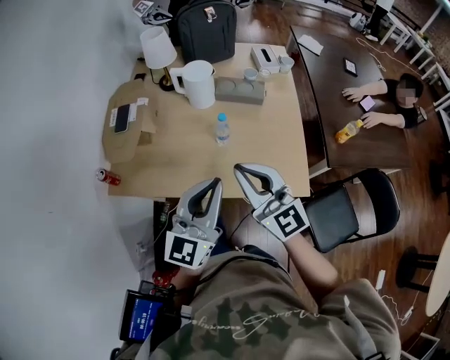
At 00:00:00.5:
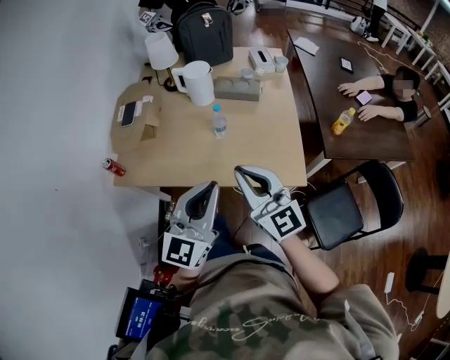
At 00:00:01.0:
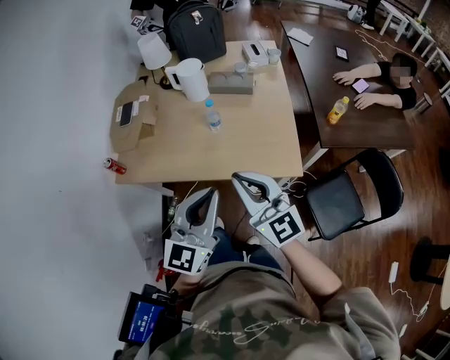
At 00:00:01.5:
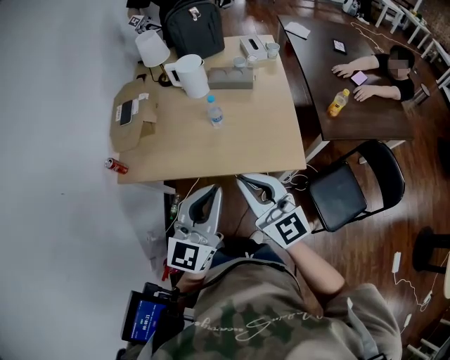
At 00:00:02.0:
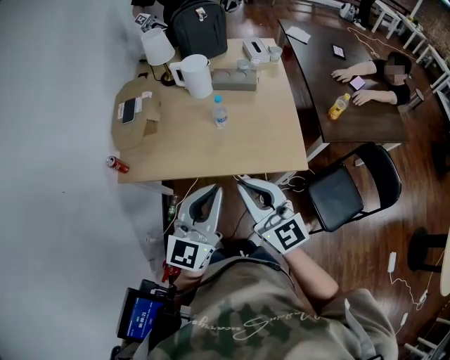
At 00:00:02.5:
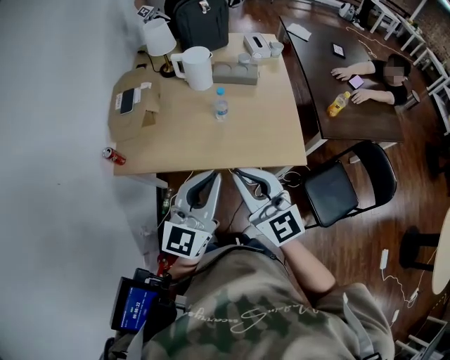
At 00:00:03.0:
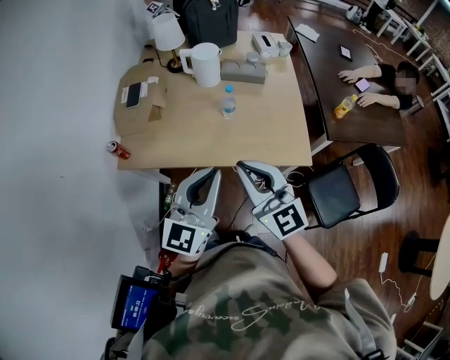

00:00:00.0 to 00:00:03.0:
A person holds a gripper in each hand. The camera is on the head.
00:00:00.0 to 00:00:01.5: The grippers both shift backward by roughly 15 cm.
00:00:01.5 to 00:00:03.0: Both grippers travel together to the left, some 10 cm.

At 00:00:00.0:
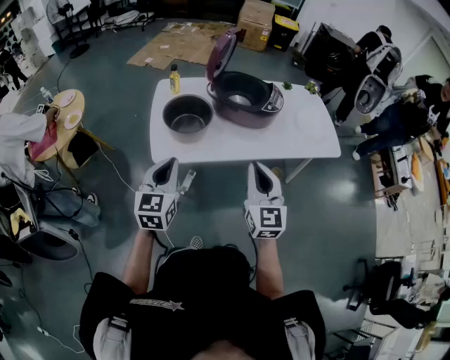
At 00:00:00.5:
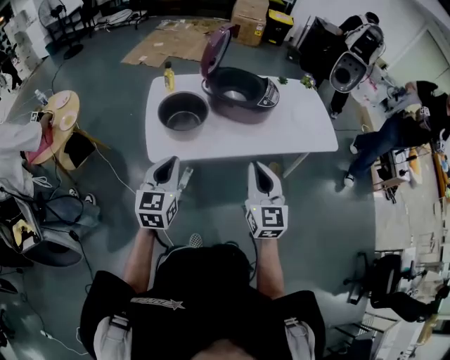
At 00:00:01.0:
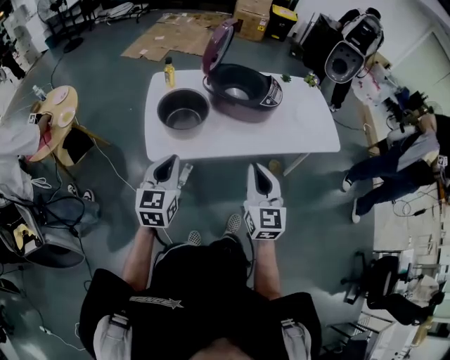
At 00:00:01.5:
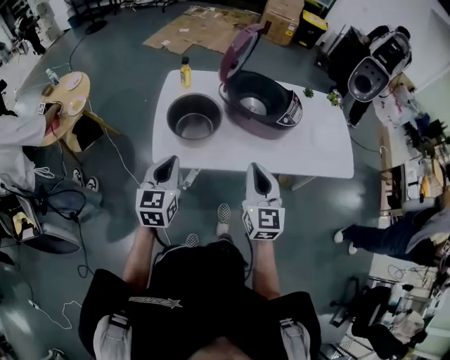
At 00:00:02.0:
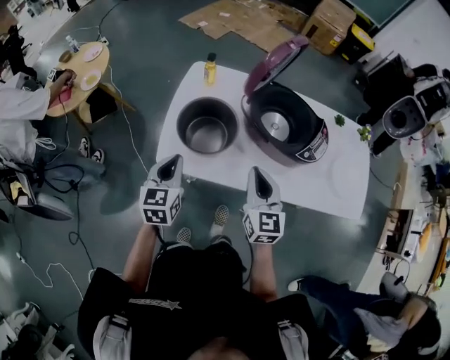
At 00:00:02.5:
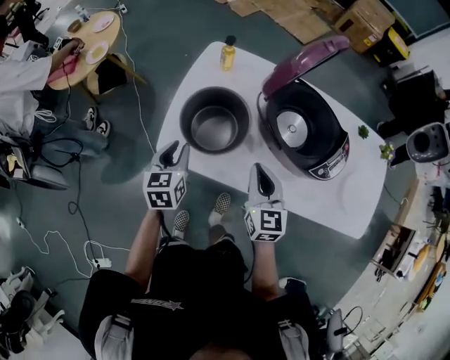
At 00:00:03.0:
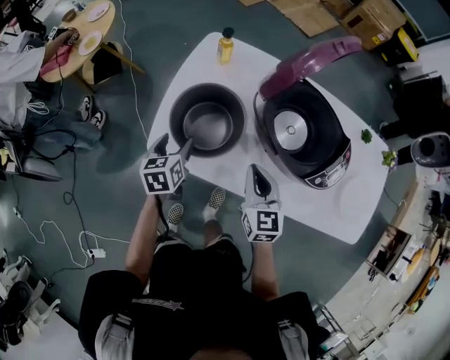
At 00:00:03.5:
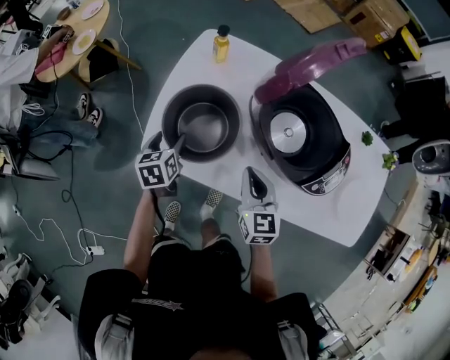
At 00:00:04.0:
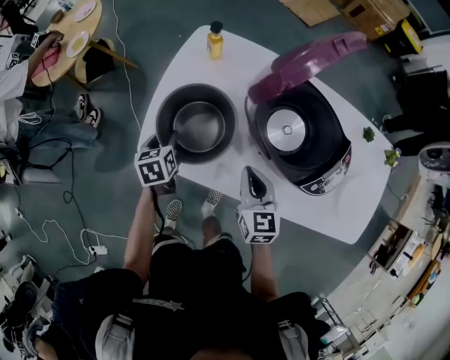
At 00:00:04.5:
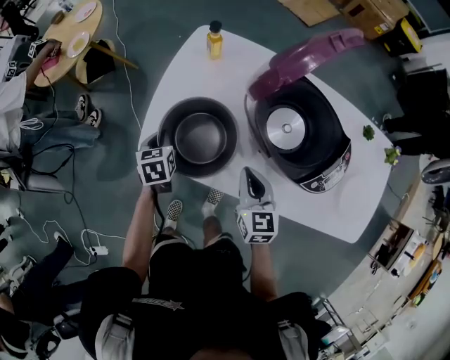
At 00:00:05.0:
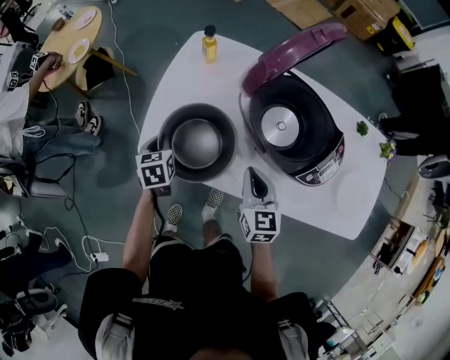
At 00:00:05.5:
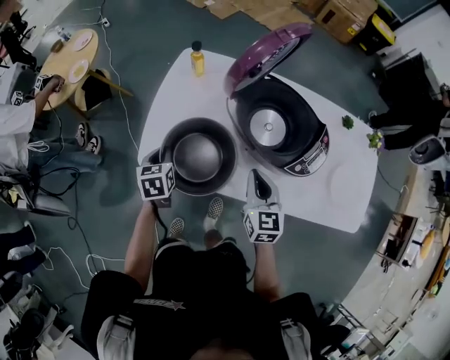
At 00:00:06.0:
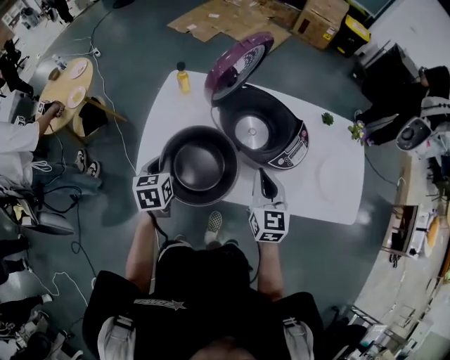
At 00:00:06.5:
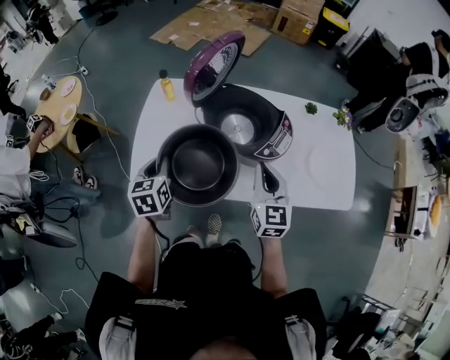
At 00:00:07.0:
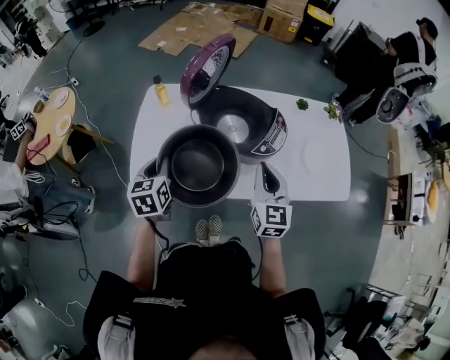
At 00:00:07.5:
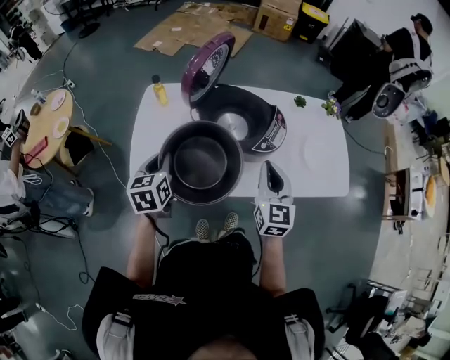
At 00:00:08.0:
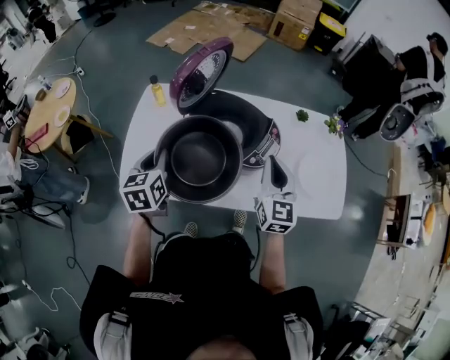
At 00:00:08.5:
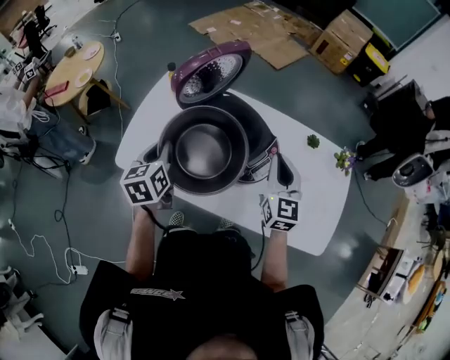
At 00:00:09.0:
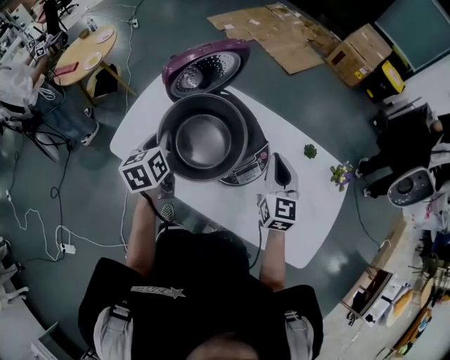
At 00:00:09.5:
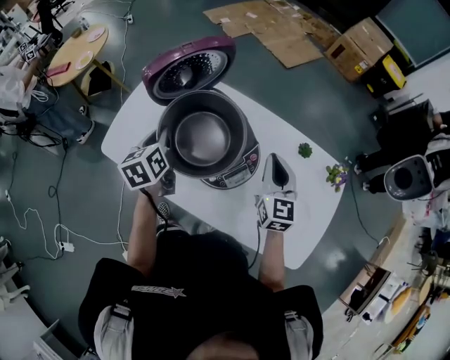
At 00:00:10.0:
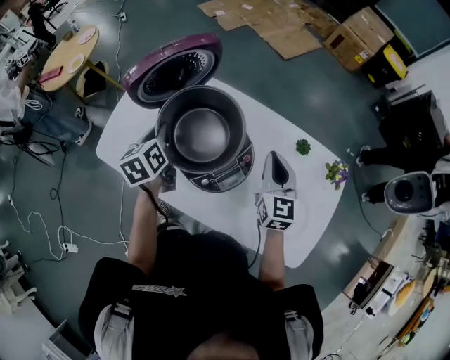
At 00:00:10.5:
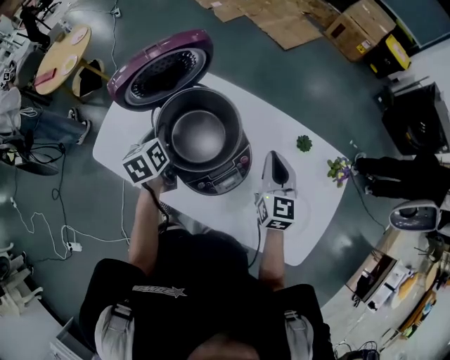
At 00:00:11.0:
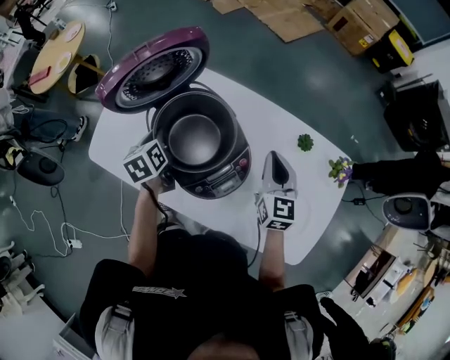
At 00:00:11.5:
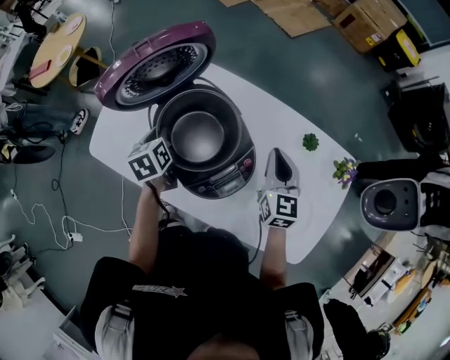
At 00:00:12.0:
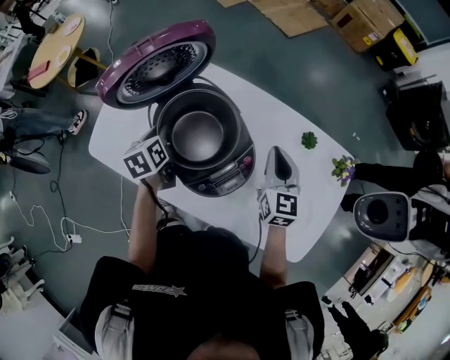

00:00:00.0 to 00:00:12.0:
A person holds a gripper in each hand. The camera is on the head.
00:00:00.0 to 00:00:02.0: Both grippers travel together forward and downward, about 20 cm. The right gripper swivels some 20 degrees. The left gripper changes its angle by approximately 20 degrees.
00:00:02.0 to 00:00:04.0: Both grippers move downward and forward, some 20 cm. The left gripper turns by some 30 degrees, and opens. The right gripper changes its angle by about 20 degrees.
00:00:04.0 to 00:00:06.0: The right gripper travels upward, to the right and backward by some 15 cm; the left gripper travels upward, backward and to the right by roughly 15 cm, and closes up.
00:00:06.0 to 00:00:08.0: The two grippers go approximately 15 cm to the right and upward.
00:00:08.0 to 00:00:10.0: Both grippers travel together to the right and forward, roughly 15 cm. The right gripper changes its angle by some 20 degrees; the left gripper turns by some 30 degrees.
00:00:10.0 to 00:00:12.0: The left gripper is displaced downward by some 10 cm. The right gripper shifts approximately 5 cm downward.

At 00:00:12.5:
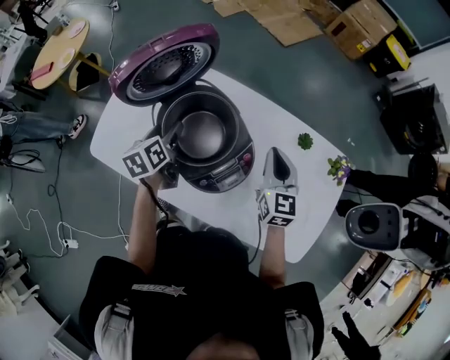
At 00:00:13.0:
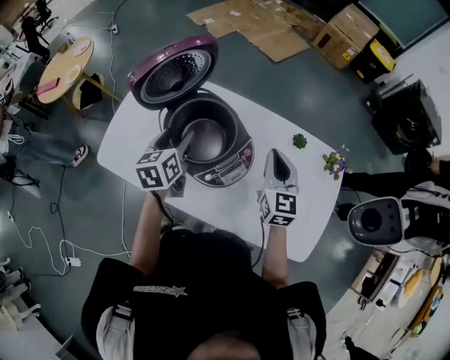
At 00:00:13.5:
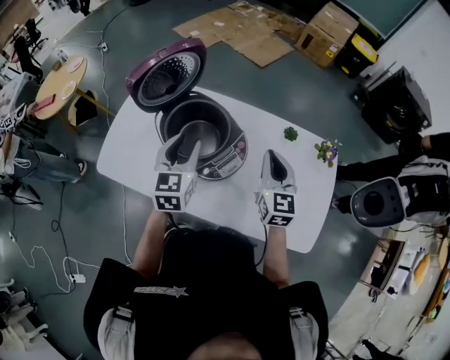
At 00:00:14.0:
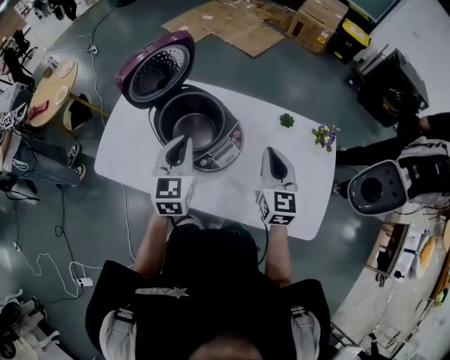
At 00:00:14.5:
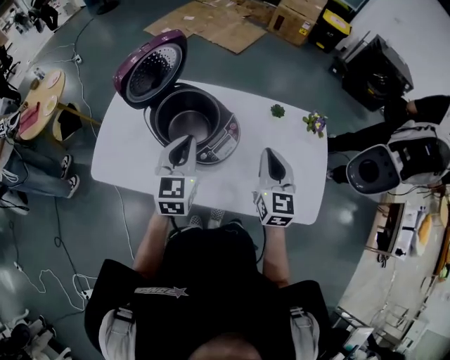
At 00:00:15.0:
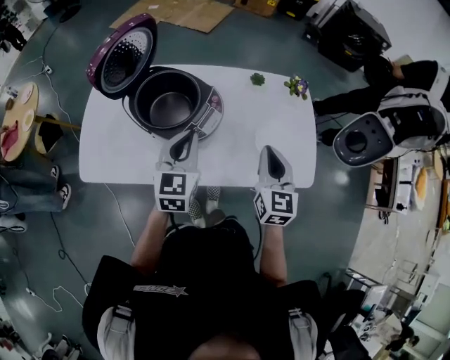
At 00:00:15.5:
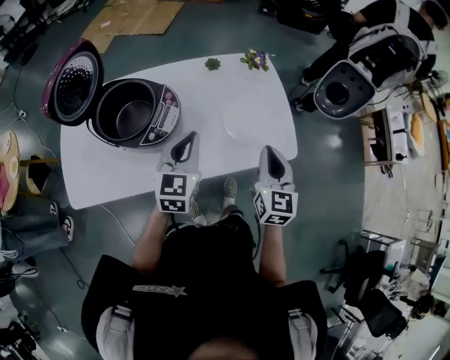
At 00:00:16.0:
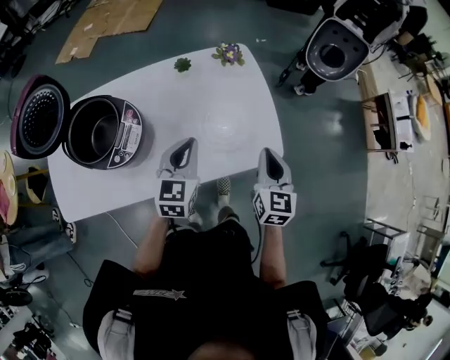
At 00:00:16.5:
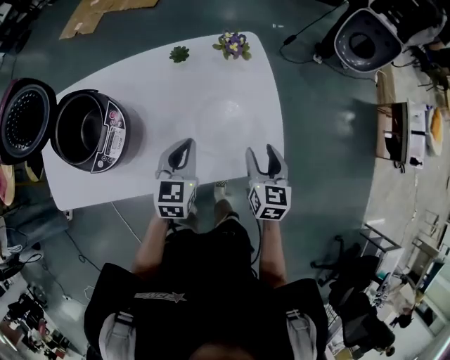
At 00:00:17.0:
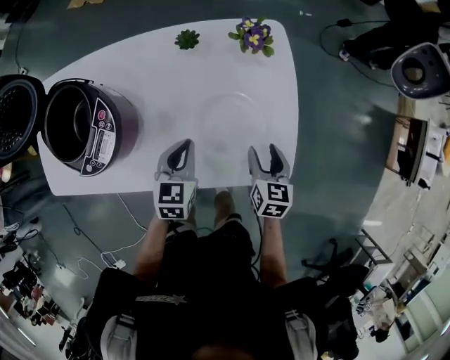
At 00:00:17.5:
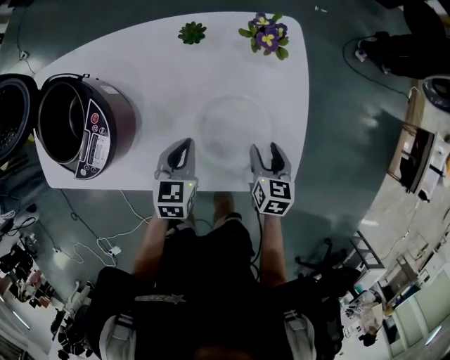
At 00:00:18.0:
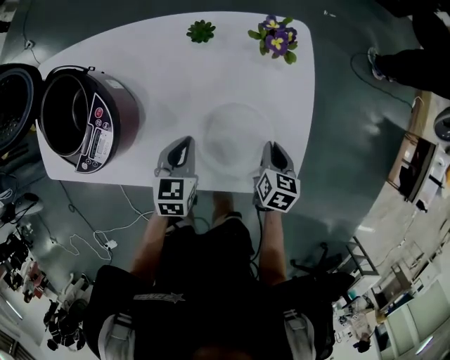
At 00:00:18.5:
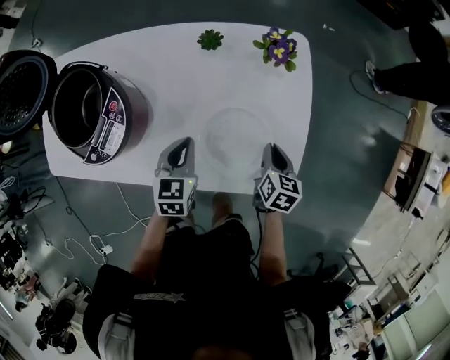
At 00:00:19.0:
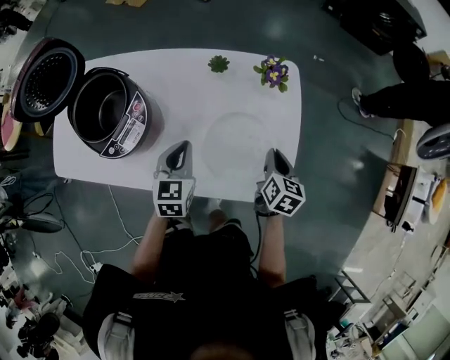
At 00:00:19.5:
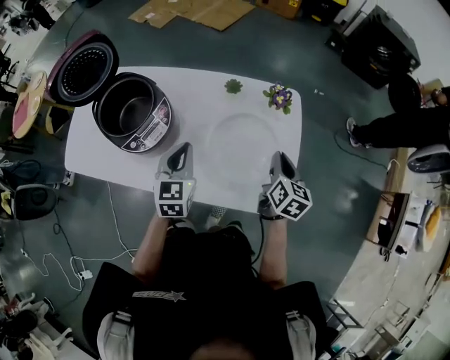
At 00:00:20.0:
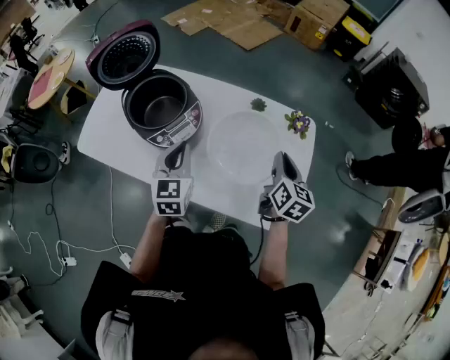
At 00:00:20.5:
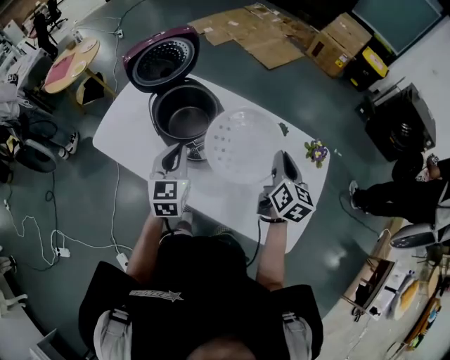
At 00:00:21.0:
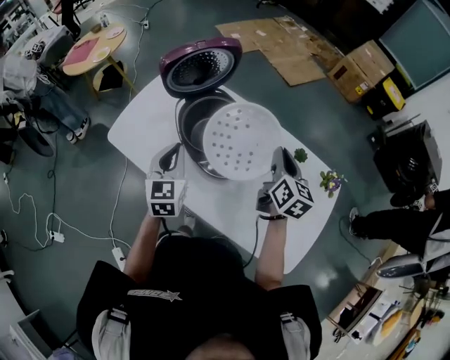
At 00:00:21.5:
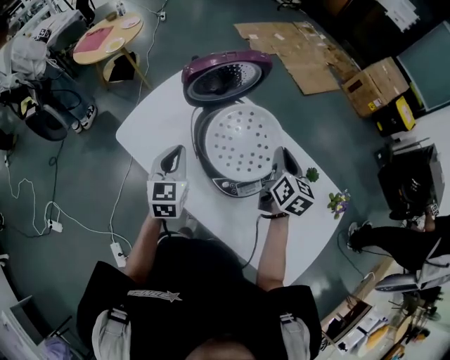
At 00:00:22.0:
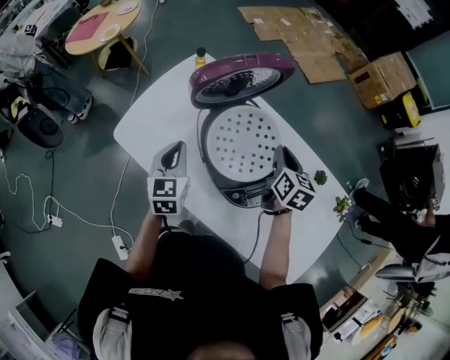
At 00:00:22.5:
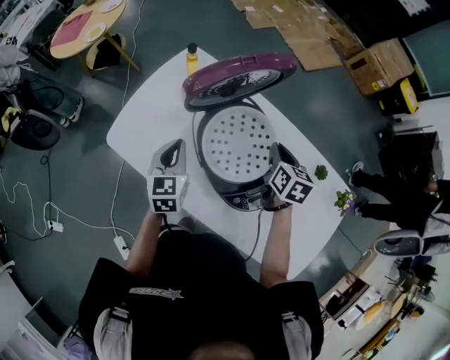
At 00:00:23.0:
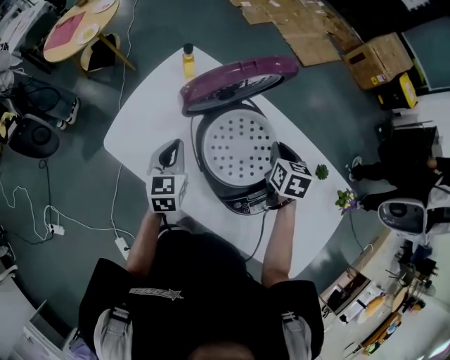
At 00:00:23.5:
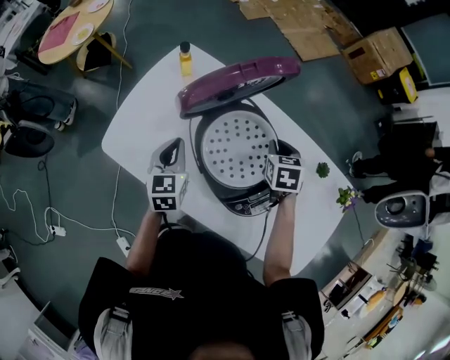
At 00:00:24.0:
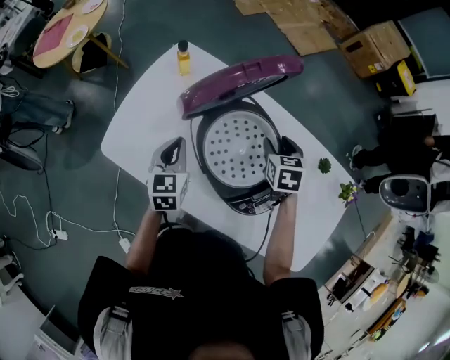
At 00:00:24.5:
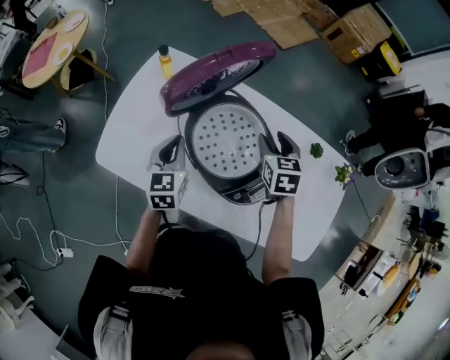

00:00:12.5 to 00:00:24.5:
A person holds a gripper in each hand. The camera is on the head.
00:00:12.5 to 00:00:14.5: The right gripper shifts roughly 15 cm backward and upward. Meanwhile the left gripper is displaced upward, backward and to the right by roughly 20 cm, rolls clockwise, seen from behind, by some 40 degrees, and closes up.
00:00:14.5 to 00:00:16.5: The left gripper ends up about 35 cm from where it was, and turns by about 30 degrees. The right gripper shifts by roughly 35 cm, swivels approximately 30 degrees, and opens its fingers.
00:00:16.5 to 00:00:18.5: The left gripper moves downward, roughly 10 cm. The right gripper shifts approximately 15 cm downward and forward, and closes.
00:00:18.5 to 00:00:20.5: The right gripper shifts some 35 cm upward, to the left and forward, and swivels roughly 30 degrees. The left gripper heads to the left and upward, covering approximately 30 cm, and swivels some 40 degrees.
00:00:20.5 to 00:00:22.5: The right gripper heads forward, to the left and downward, covering approximately 30 cm, and rotates approximately 30 degrees. The left gripper shifts approximately 25 cm to the left, forward and downward.
00:00:22.5 to 00:00:24.5: The right gripper opens.
